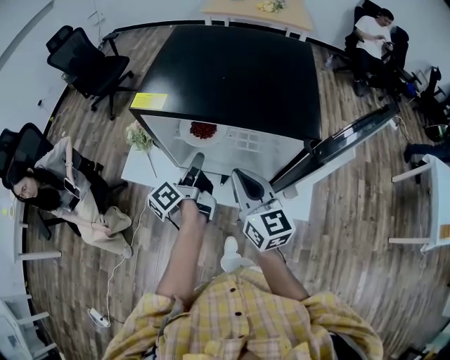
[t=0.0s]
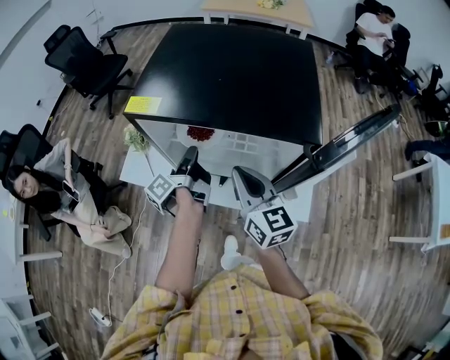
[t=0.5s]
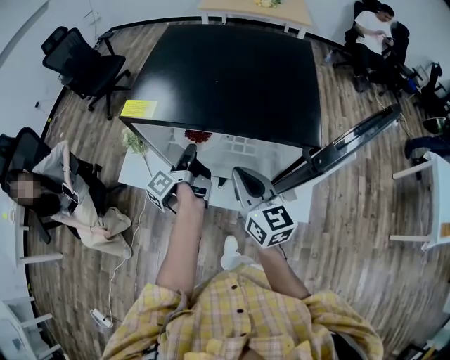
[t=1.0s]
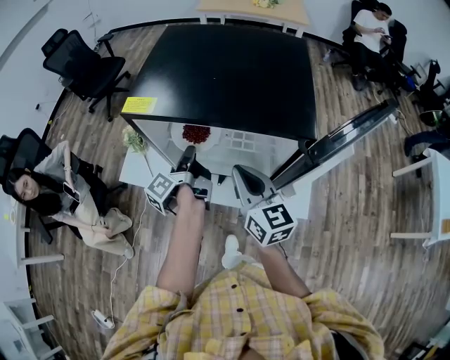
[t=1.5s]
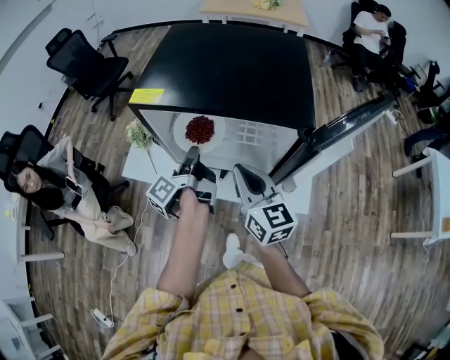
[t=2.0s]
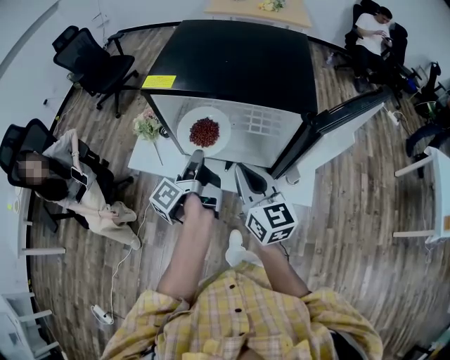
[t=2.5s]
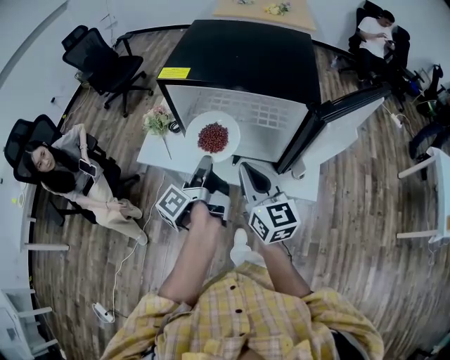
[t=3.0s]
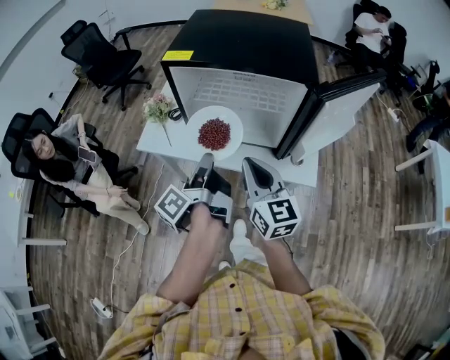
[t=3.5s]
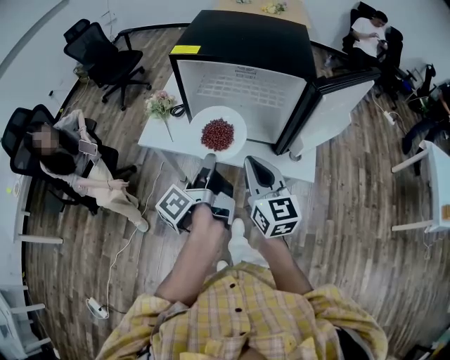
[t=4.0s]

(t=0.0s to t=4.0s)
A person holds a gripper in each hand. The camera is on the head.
t=0.0s - t=2.0s: The grippers move only a little.
t=2.0s - t=4.0s: The two grippers go some 15 cm backward.

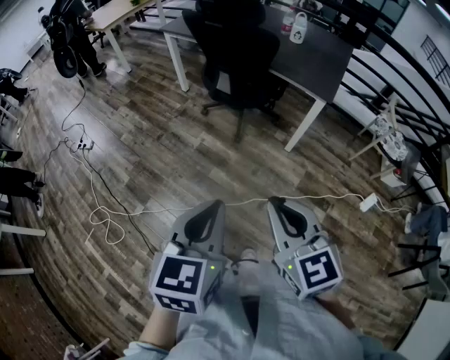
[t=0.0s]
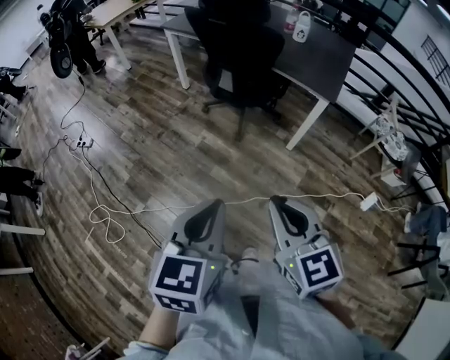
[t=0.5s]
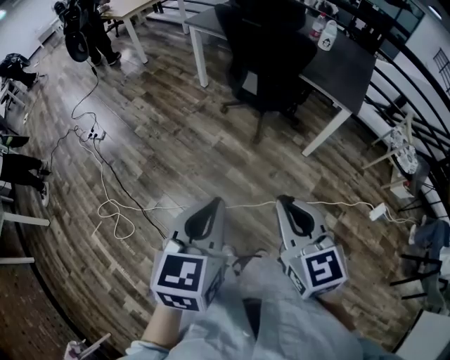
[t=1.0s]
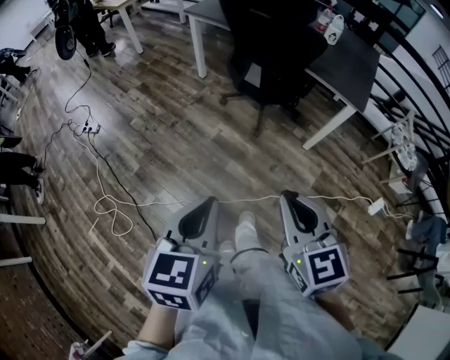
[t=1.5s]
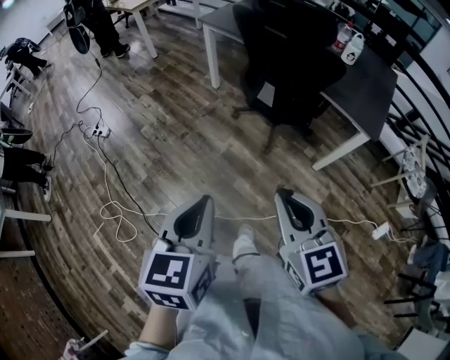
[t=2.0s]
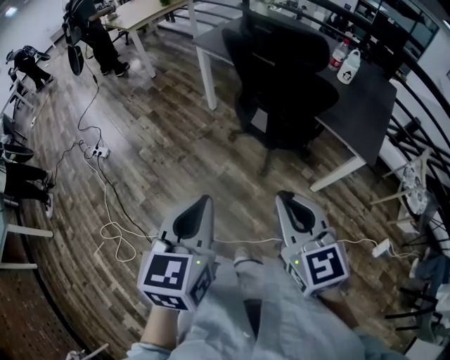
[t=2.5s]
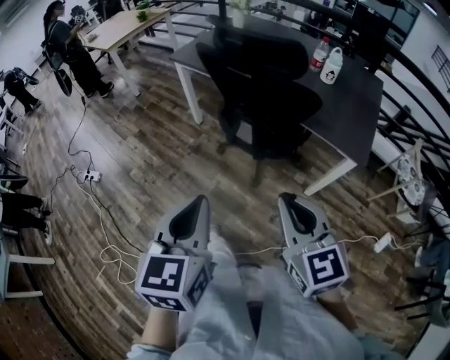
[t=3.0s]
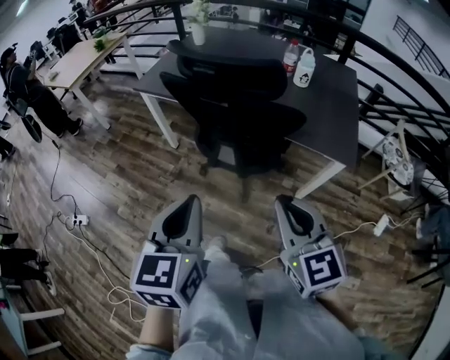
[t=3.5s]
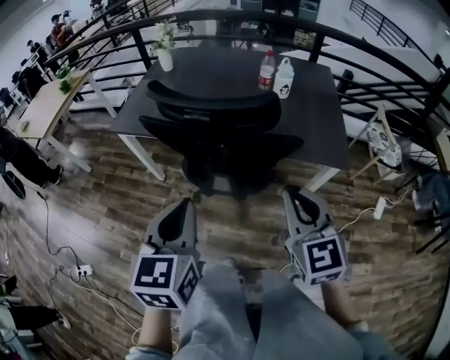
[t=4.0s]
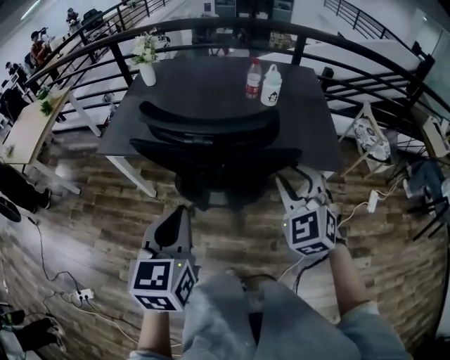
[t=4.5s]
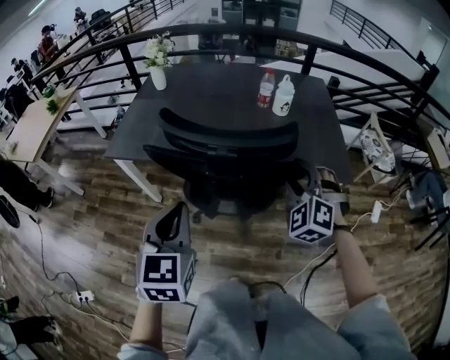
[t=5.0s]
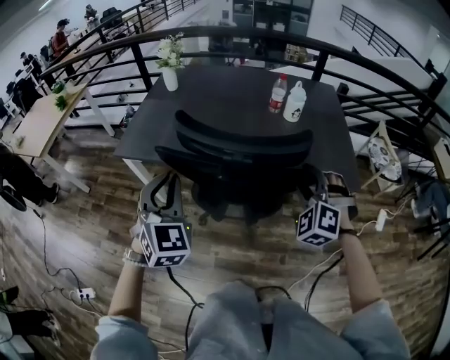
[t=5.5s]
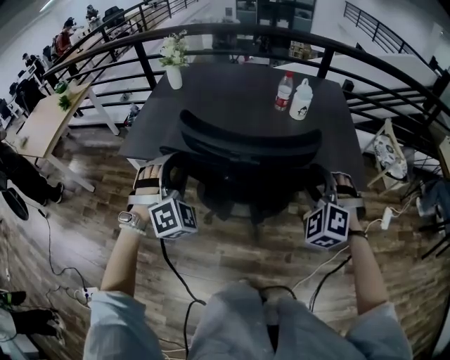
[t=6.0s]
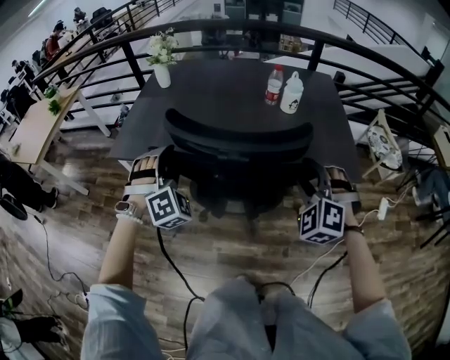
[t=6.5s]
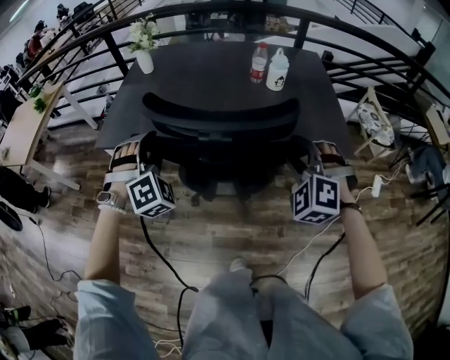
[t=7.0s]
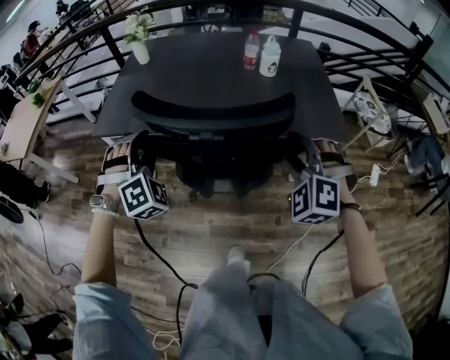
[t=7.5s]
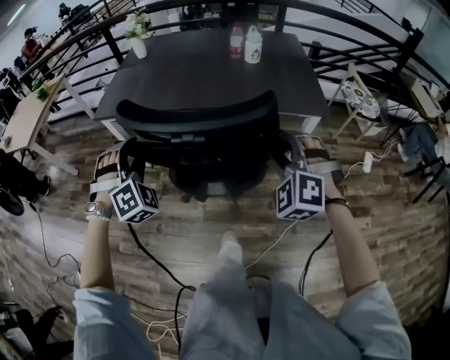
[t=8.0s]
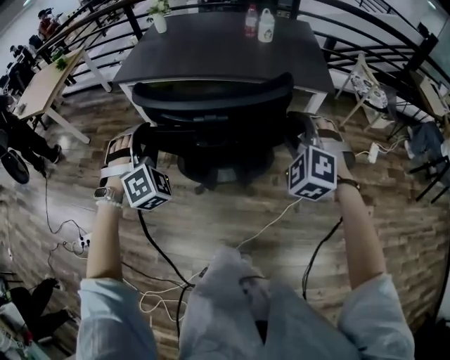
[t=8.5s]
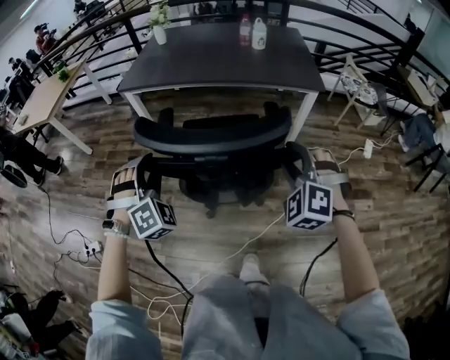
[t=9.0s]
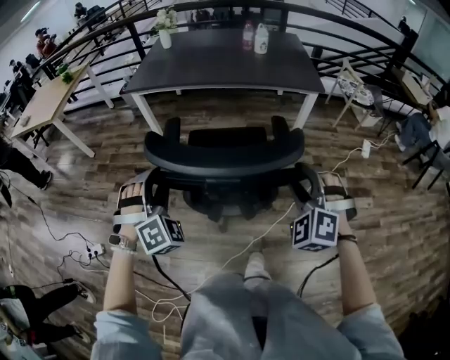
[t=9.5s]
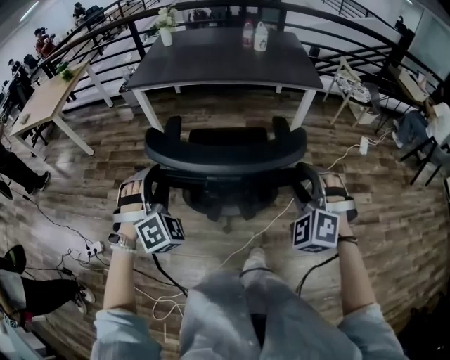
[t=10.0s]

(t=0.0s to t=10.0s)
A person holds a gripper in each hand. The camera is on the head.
t=0.0s - t=2.0s: The right gripper travels forward and to the left by some 20 cm. The left gripper heads to the left and forward, covering about 20 cm.
t=2.0s - t=4.0s: The left gripper ends up some 40 cm from where it was, and turns by some 30 degrees. The right gripper moves some 35 cm, and changes its angle by roughly 40 degrees.
t=4.0s - t=6.0s: The right gripper is displaced forward by about 15 cm, rolls counterclockwise, seen from behind, by some 50 degrees, and opens up; the left gripper moves forward and to the left, about 25 cm, rotates around the line of its fingers by some 80 degrees, clockwise from behind, and opens its fingers.
t=6.0s - t=8.0s: The grippers both shift backward by roughly 20 cm.
t=8.0s - t=10.0s: The two grippers go some 30 cm backward.

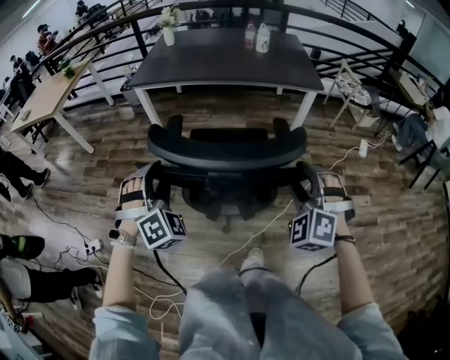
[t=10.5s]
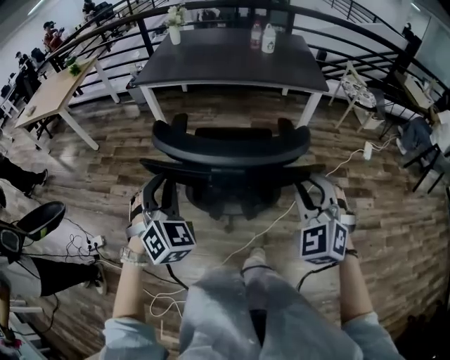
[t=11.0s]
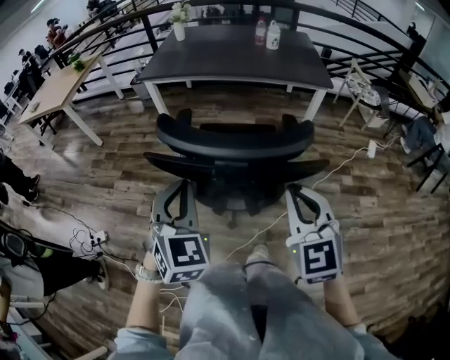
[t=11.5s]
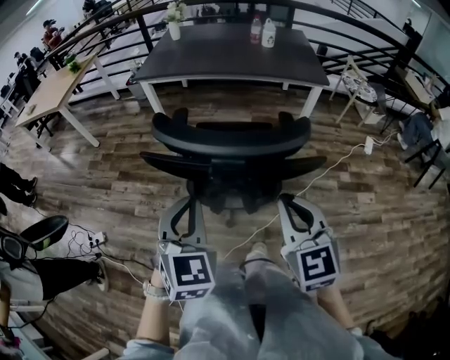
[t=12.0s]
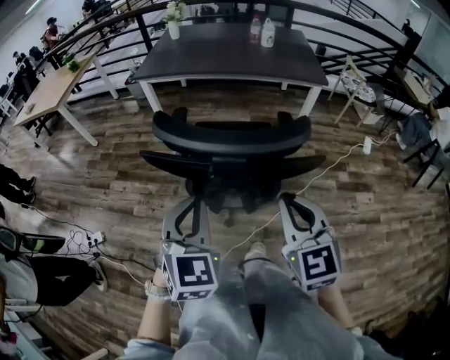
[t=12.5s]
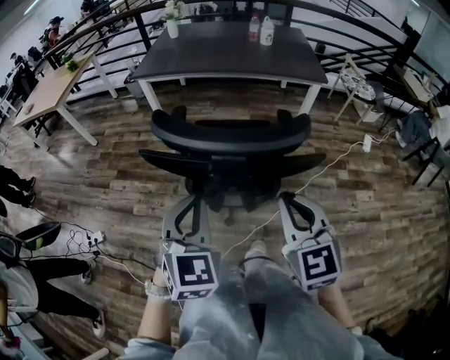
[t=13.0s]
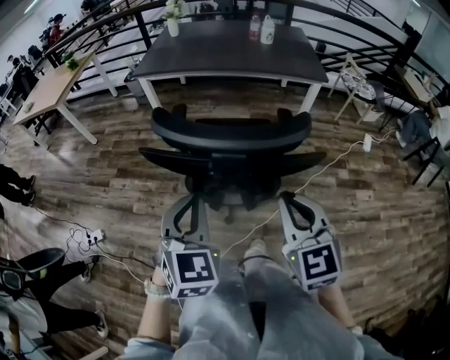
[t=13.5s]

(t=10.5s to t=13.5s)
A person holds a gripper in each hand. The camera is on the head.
t=10.5s - t=12.0s: The right gripper is displaced backward and to the left by about 10 cm, rotates around the line of its fingers by about 50 degrees, clockwise from behind, and closes its fingers; the left gripper travels backward, to the right and upward by some 15 cm, rolls counterclockwise, seen from behind, by approximately 50 degrees, and closes its fingers.
t=12.0s - t=13.5s: Neither gripper changes place.

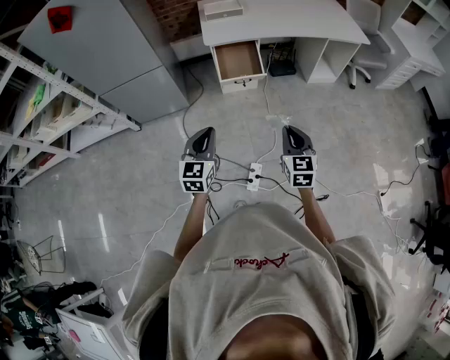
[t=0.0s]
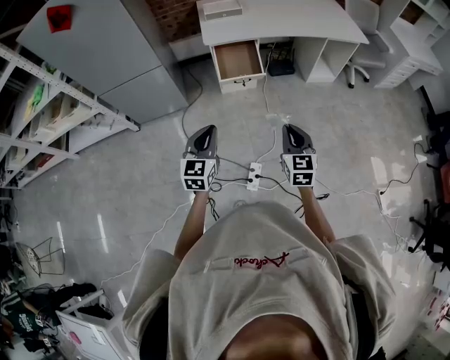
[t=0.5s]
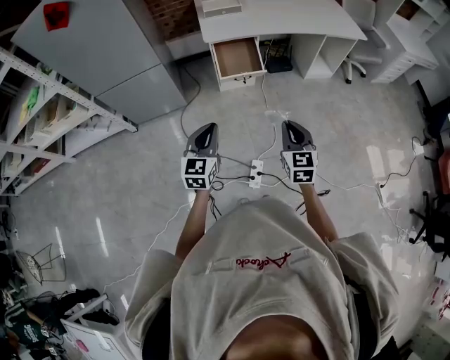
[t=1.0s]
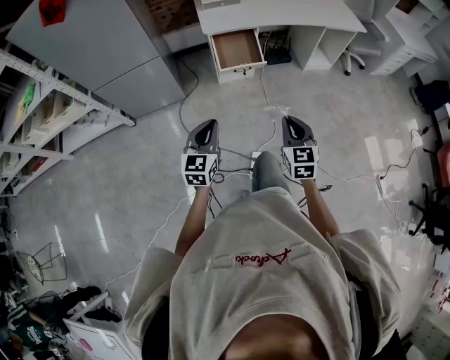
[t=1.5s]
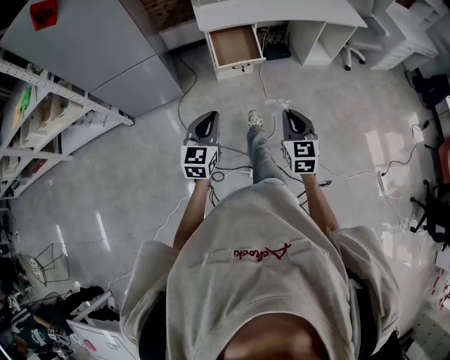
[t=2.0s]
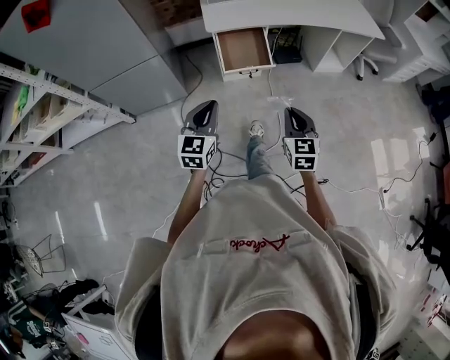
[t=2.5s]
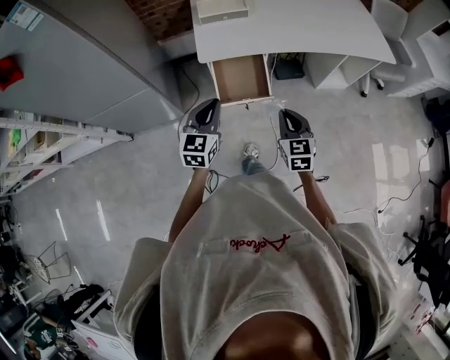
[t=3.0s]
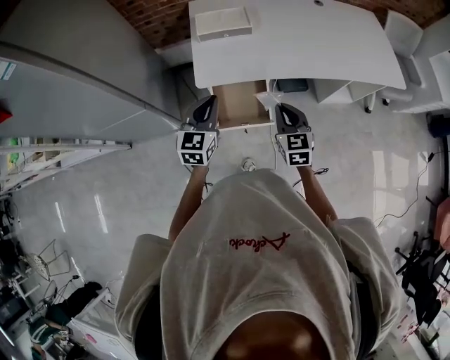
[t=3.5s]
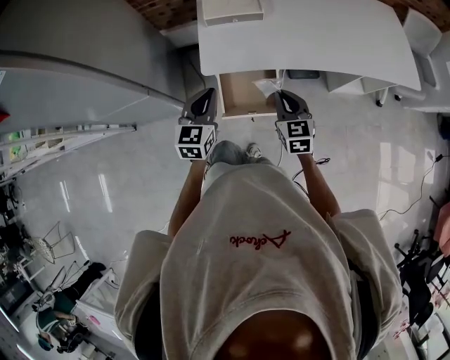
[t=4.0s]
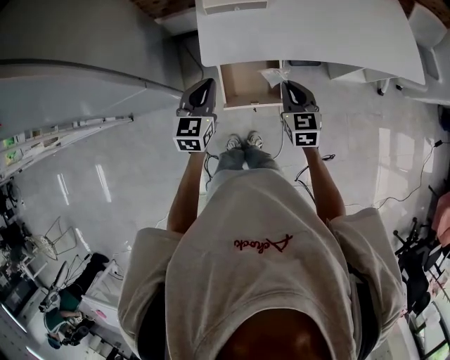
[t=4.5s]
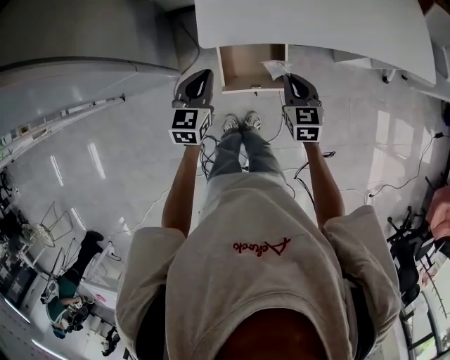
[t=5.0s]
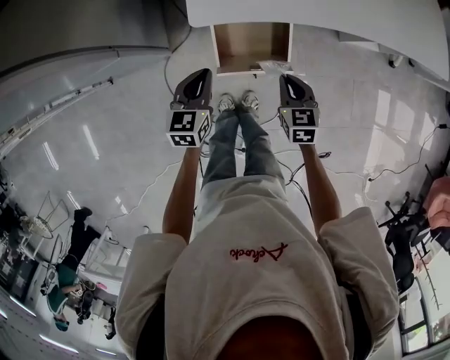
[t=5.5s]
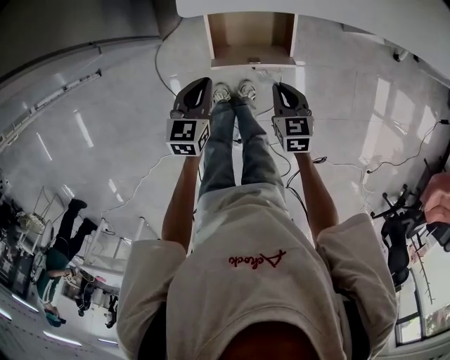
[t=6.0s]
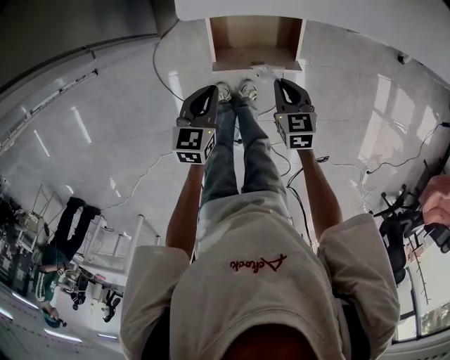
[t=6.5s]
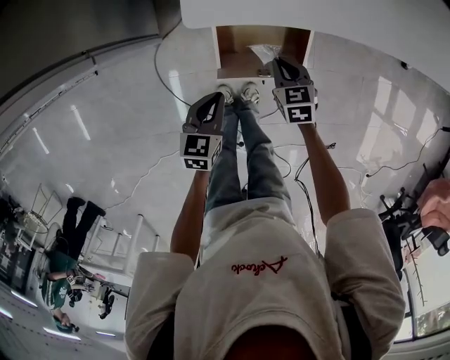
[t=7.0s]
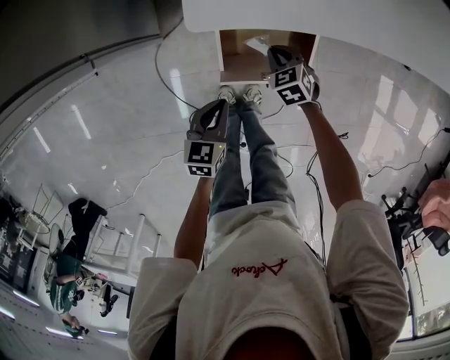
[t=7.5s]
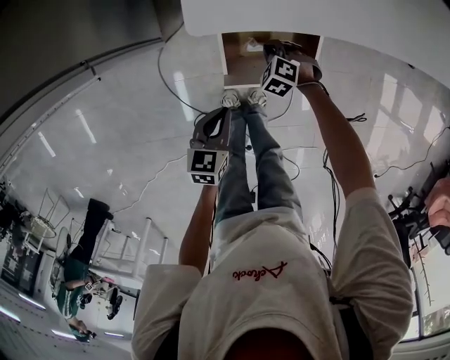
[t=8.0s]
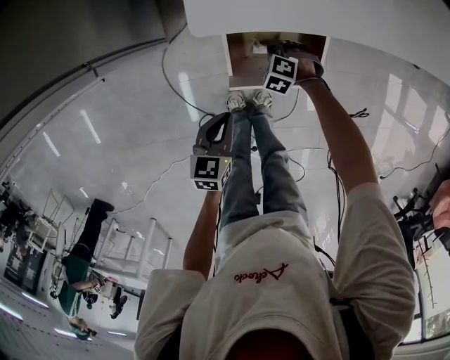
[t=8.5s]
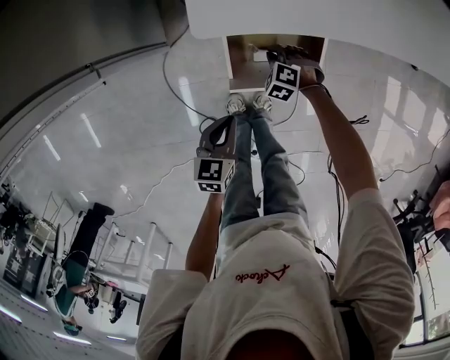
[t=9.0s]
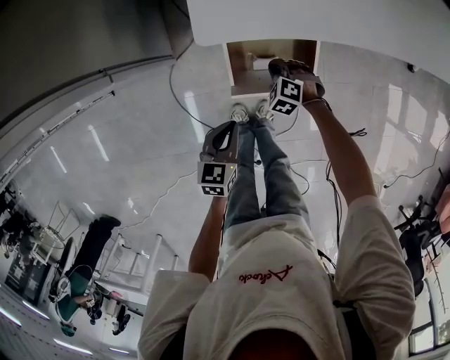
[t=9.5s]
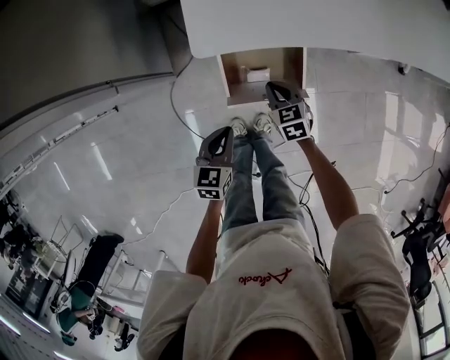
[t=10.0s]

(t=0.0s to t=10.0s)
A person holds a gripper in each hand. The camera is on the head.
t=0.0s - t=2.0s: The right gripper is displaced to the left by about 5 cm.
t=2.0s - t=4.0s: The pair of grippers is taken forward, about 50 cm.
t=4.0s - t=6.0s: Both grippers move downward, some 20 cm. The left gripper rotates some 20 degrees, while the right gripper changes its angle by roughly 30 degrees.
t=6.0s - t=8.0s: The left gripper travels downward by approximately 5 cm, while the right gripper is displaced downward, forward and to the left by about 25 cm, and rolls counterclockwise, seen from behind, by roughly 60 degrees.
t=8.0s - t=10.0s: The right gripper moves upward, about 10 cm, and rotates around the line of its fingers by some 50 degrees, clockwise from behind.
